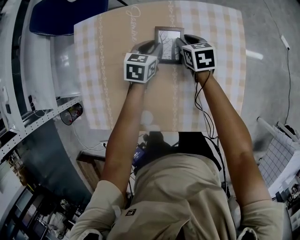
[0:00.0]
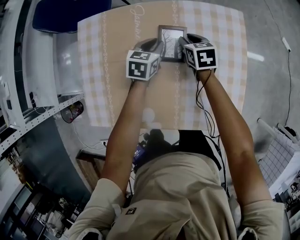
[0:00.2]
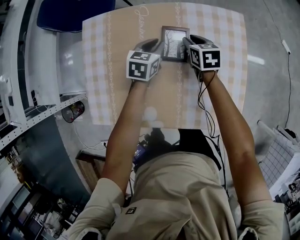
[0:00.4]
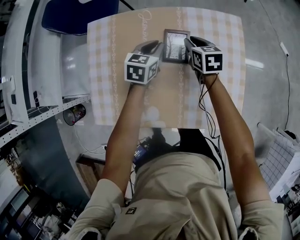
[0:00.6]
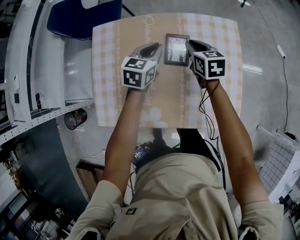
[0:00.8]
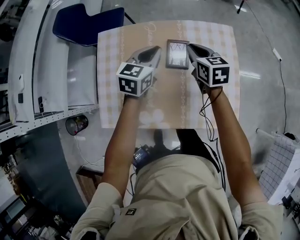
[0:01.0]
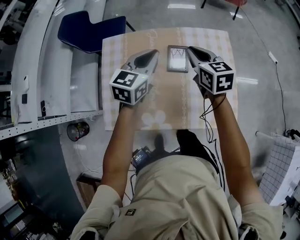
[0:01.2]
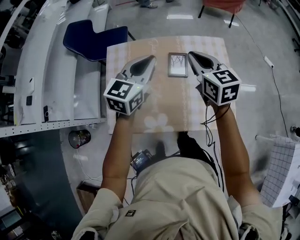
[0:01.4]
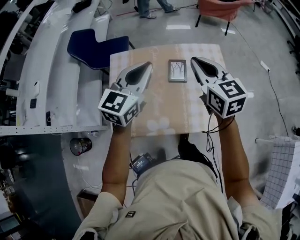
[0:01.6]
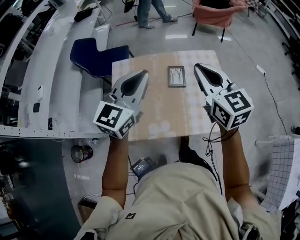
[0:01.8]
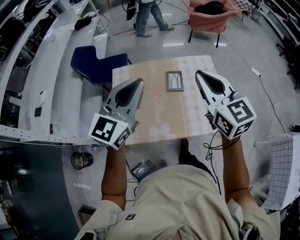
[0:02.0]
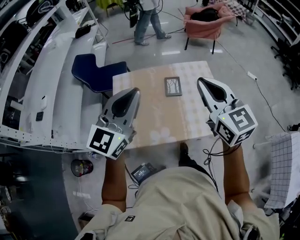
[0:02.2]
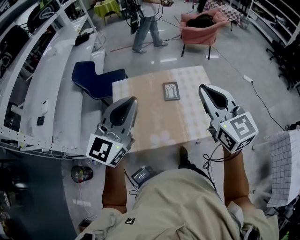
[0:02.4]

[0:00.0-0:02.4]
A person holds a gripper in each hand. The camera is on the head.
0:00.0 to 0:01.2: Both grippers move upward, roughly 25 cm. The right gripper turns by roughly 20 degrees, while the left gripper swivels approximately 30 degrees.
0:01.2 to 0:02.4: The right gripper travels upward and backward by roughly 40 cm, and swivels roughly 30 degrees, while the left gripper goes roughly 35 cm backward and upward, and turns by roughly 30 degrees.

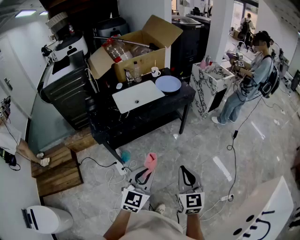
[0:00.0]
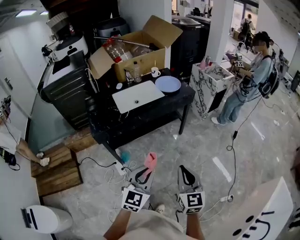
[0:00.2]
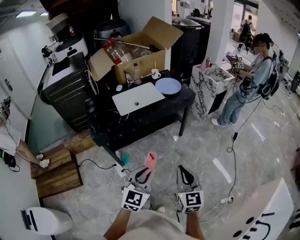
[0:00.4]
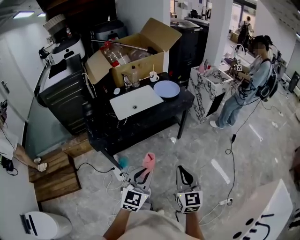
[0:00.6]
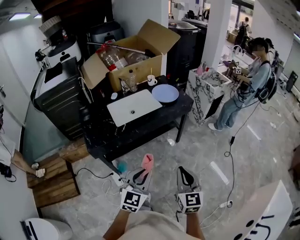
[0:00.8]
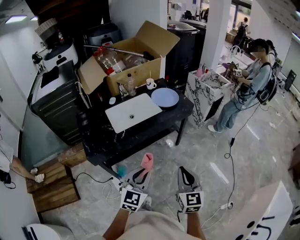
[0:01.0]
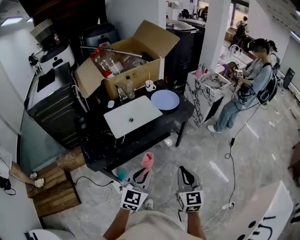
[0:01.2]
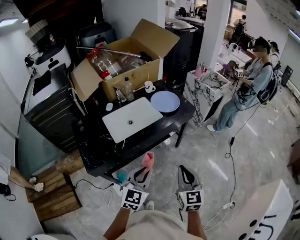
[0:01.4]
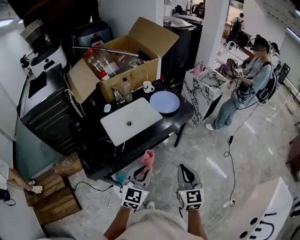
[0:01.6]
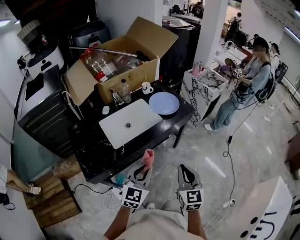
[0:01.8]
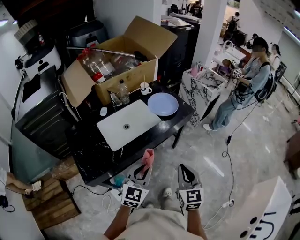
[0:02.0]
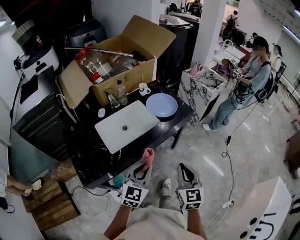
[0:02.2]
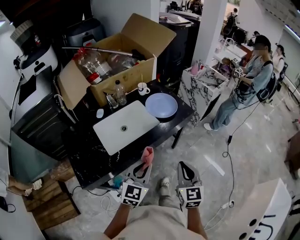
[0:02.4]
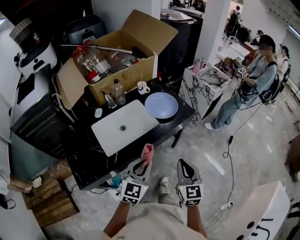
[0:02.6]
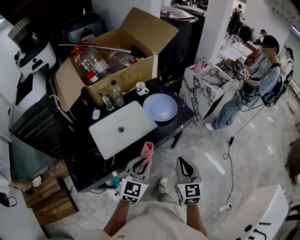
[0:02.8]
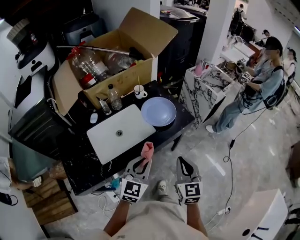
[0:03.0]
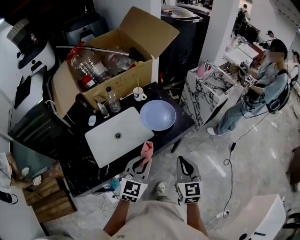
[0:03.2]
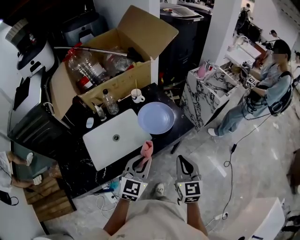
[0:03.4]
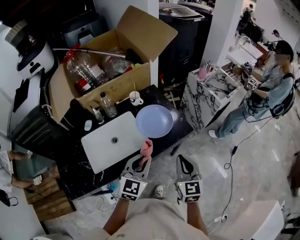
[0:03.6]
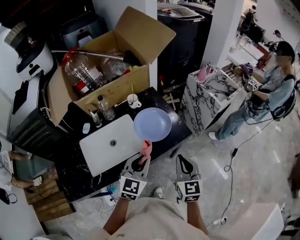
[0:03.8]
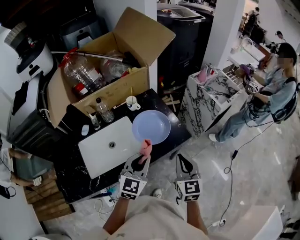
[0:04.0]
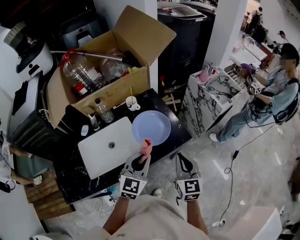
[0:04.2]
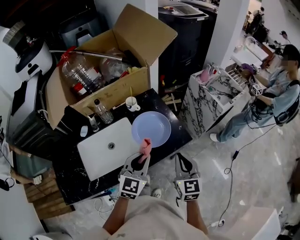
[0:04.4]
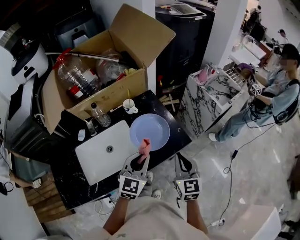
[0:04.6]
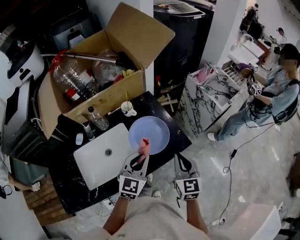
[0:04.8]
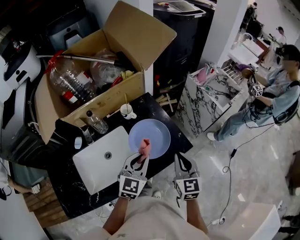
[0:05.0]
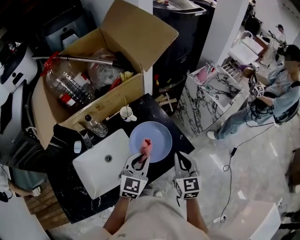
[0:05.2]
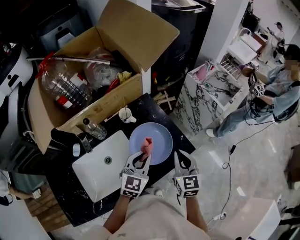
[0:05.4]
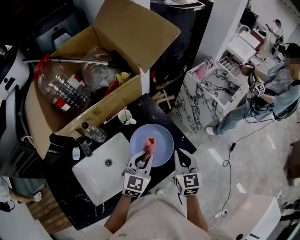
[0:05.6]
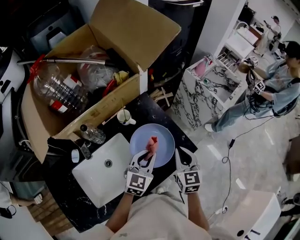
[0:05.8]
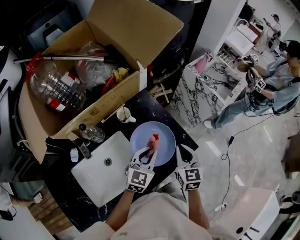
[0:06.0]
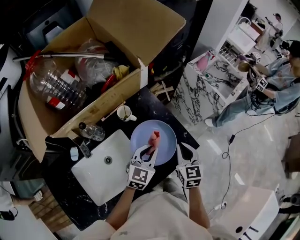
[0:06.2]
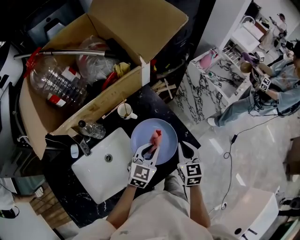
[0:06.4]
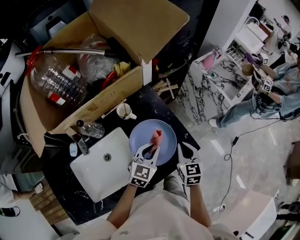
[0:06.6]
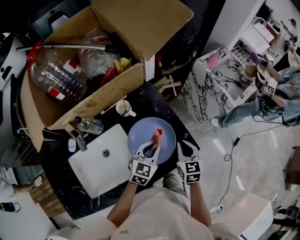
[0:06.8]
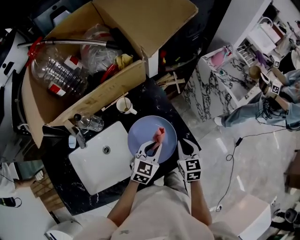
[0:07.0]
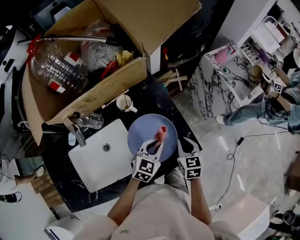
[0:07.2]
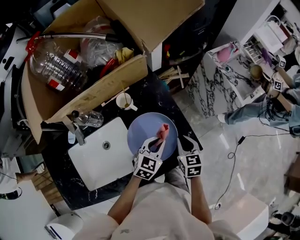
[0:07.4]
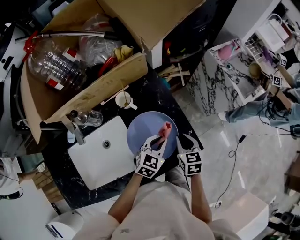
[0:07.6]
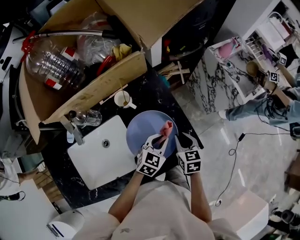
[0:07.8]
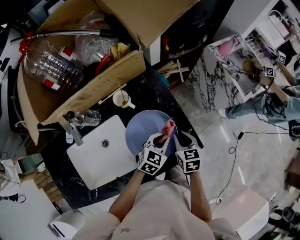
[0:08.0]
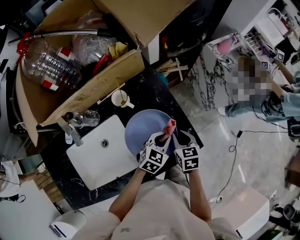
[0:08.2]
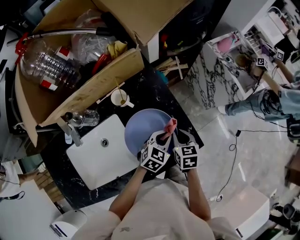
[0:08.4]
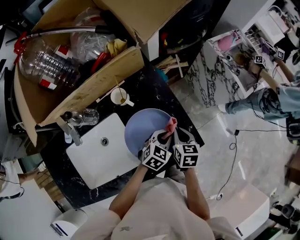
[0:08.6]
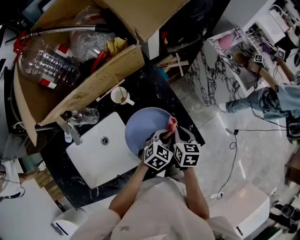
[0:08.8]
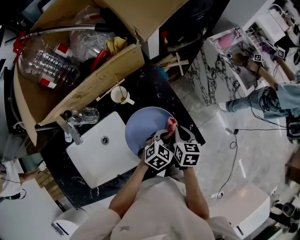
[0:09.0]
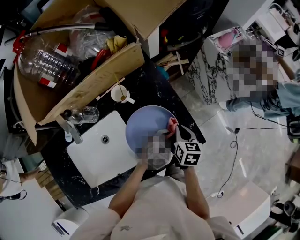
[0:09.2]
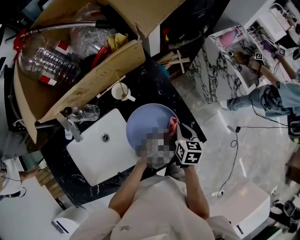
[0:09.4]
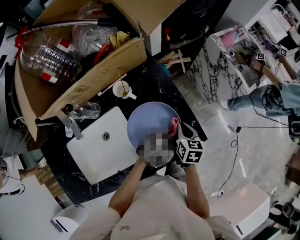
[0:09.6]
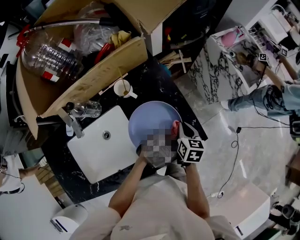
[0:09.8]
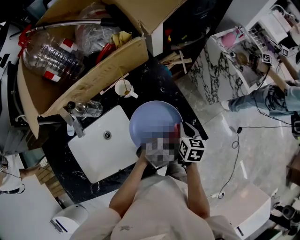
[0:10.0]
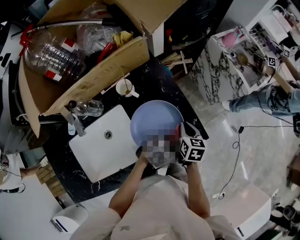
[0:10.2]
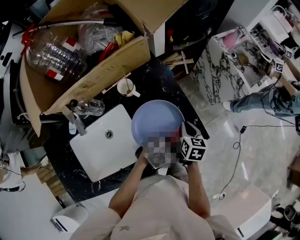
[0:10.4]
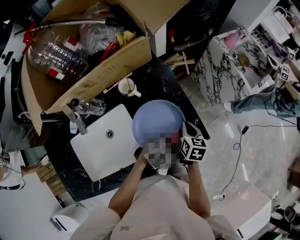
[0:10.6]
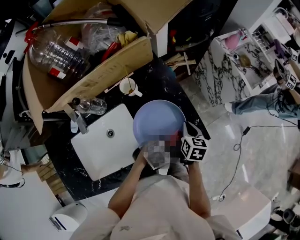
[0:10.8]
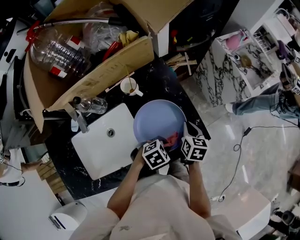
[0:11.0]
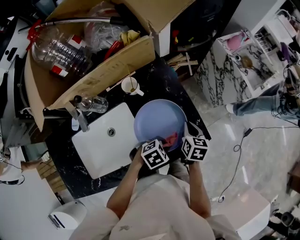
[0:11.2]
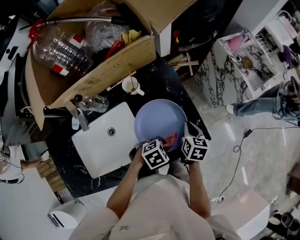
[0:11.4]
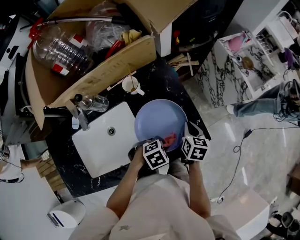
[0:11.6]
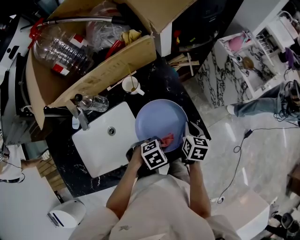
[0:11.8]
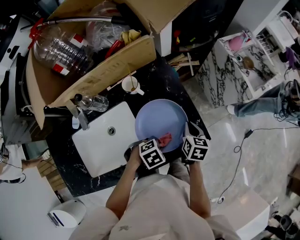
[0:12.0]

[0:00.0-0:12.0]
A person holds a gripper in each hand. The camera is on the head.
0:00.0 to 0:01.6: The two grippers go approximately 25 cm forward.
0:01.6 to 0:03.0: Both grippers move forward, some 20 cm.
0:03.0 to 0:04.4: Both grippers travel together forward, some 20 cm.
0:04.4 to 0:06.0: The left gripper heads forward and downward, covering about 20 cm, while the right gripper goes about 15 cm forward.
0:06.0 to 0:07.6: The right gripper heads downward and forward, covering some 15 cm, and turns by about 20 degrees; the left gripper shifts approximately 10 cm downward and to the right.
0:07.6 to 0:09.0: The left gripper heads downward, covering some 5 cm.
0:09.0 to 0:10.4: The left gripper is displaced backward by some 5 cm.
0:10.4 to 0:12.0: The left gripper moves backward, about 5 cm.

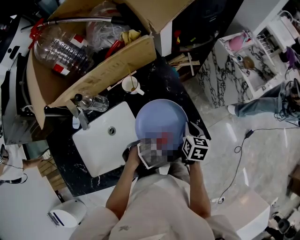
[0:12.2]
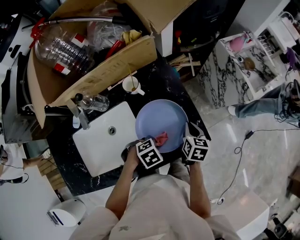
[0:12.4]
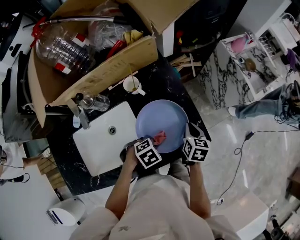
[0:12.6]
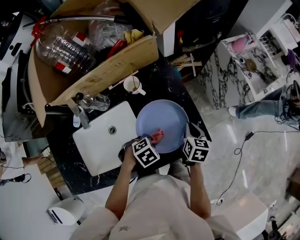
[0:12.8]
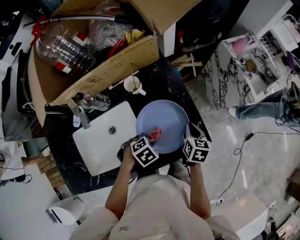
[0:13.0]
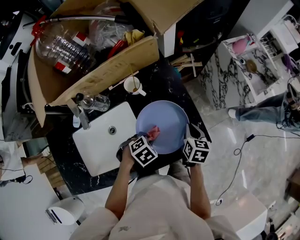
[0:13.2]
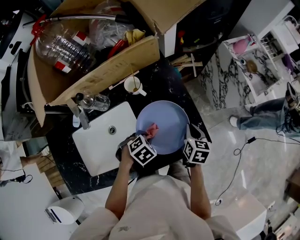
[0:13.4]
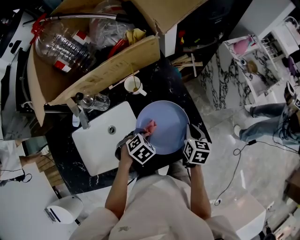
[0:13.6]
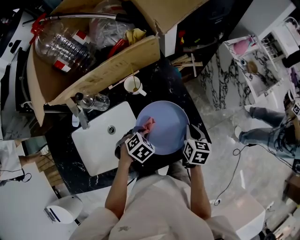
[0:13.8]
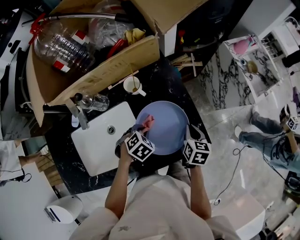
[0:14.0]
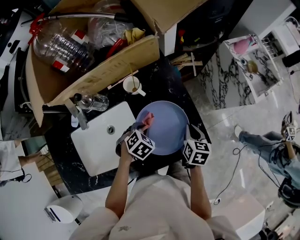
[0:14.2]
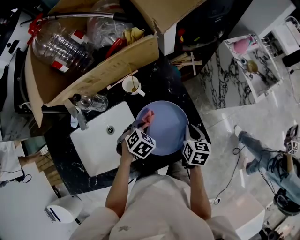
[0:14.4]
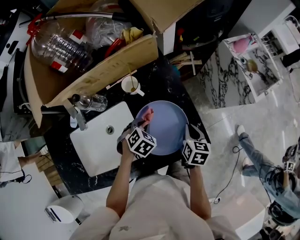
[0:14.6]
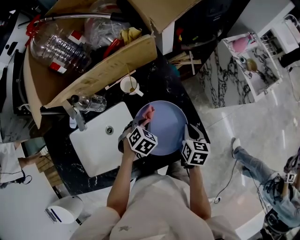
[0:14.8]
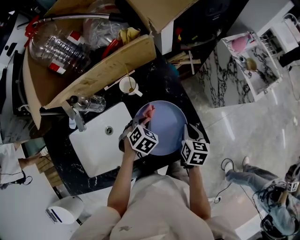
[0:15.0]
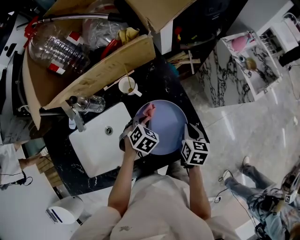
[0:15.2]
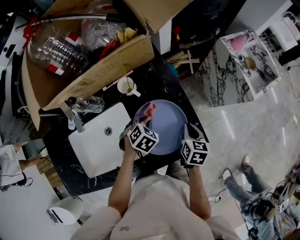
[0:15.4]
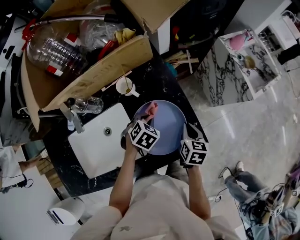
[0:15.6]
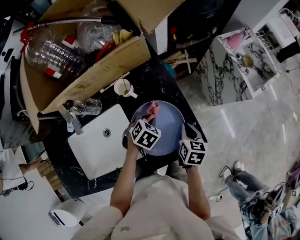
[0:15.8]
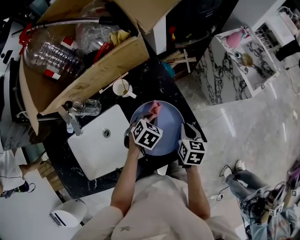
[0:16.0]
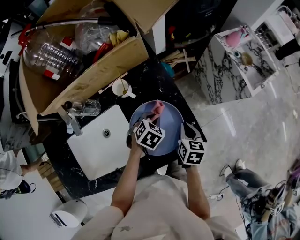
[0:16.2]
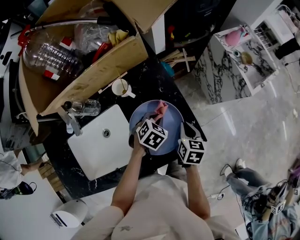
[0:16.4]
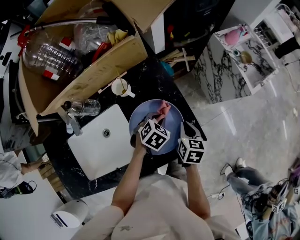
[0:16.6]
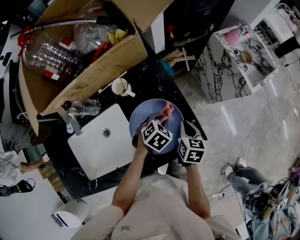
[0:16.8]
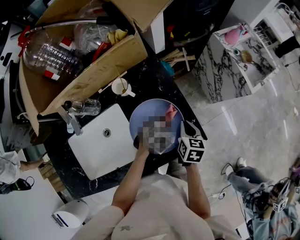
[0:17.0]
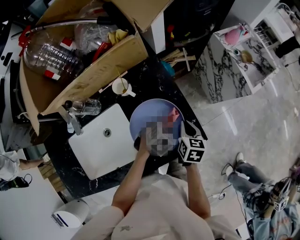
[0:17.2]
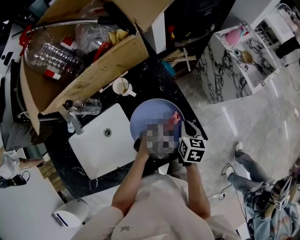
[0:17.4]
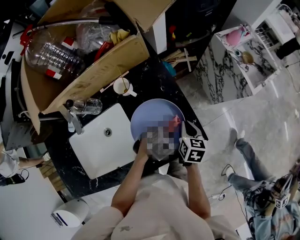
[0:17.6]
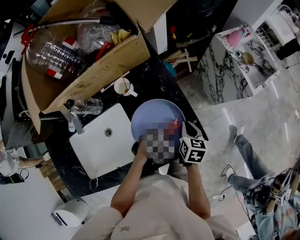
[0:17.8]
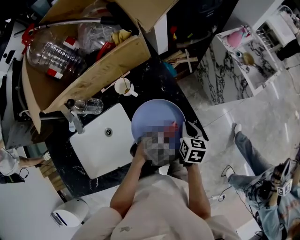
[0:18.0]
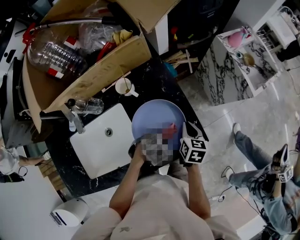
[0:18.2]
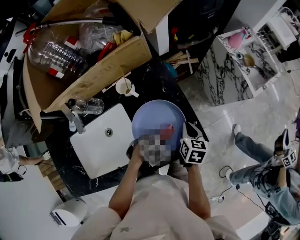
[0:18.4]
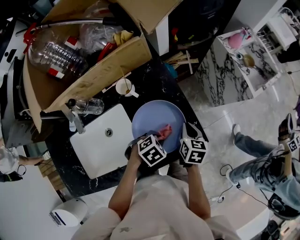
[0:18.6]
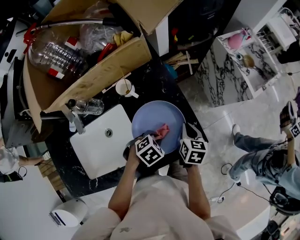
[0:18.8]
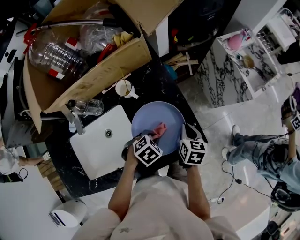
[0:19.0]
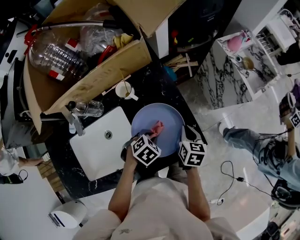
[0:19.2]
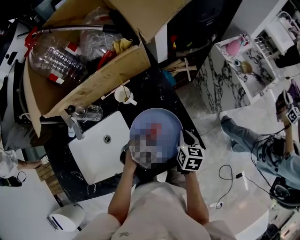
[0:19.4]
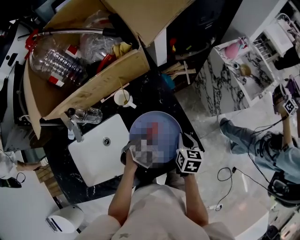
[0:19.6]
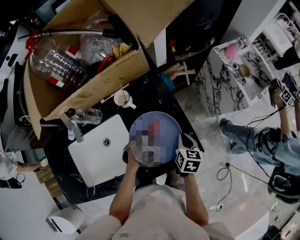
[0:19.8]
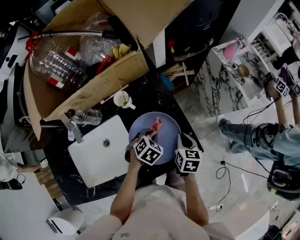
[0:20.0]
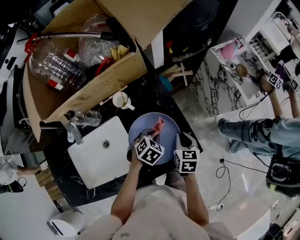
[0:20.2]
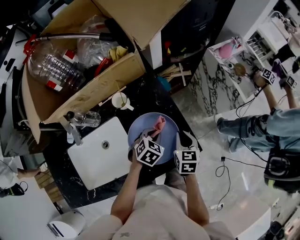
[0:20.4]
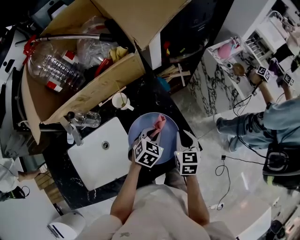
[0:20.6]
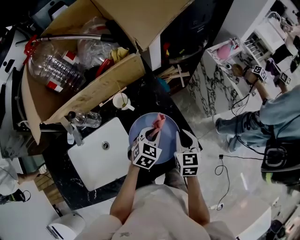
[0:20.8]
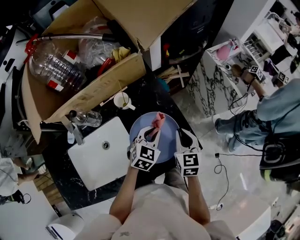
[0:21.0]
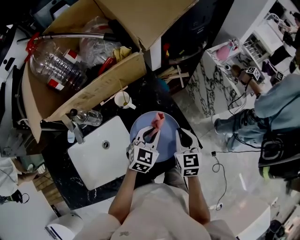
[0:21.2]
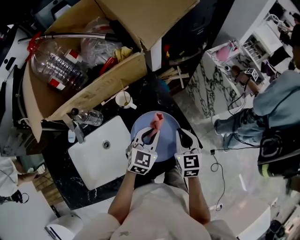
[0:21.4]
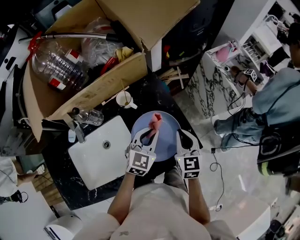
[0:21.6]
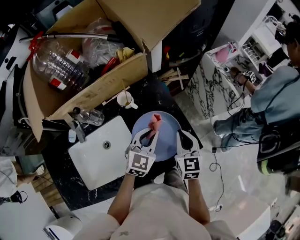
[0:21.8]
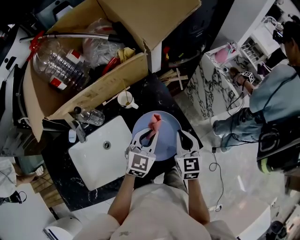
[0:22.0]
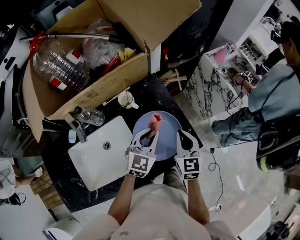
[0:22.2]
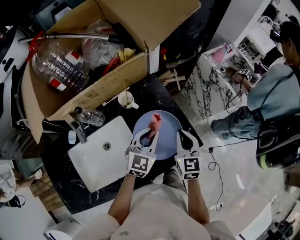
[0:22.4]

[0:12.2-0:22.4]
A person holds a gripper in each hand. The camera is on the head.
0:12.2 to 0:13.6: The left gripper shifts by approximately 10 cm.
0:13.6 to 0:15.2: The left gripper shifts by about 10 cm.
0:15.2 to 0:16.6: The left gripper moves to the right, roughly 10 cm.
0:16.6 to 0:18.0: The left gripper moves backward and to the right, some 10 cm, and changes its angle by approximately 20 degrees.
0:18.0 to 0:19.4: The left gripper is displaced to the left by roughly 10 cm.
0:19.4 to 0:21.0: The right gripper is displaced upward by some 5 cm, and turns by about 20 degrees. Meanwhile the left gripper is displaced upward and forward by roughly 10 cm, and angles its fingers upward, by about 30 degrees.
0:21.0 to 0:22.4: The right gripper ends up roughly 5 cm from where it was; the left gripper travels upward by roughly 5 cm.
